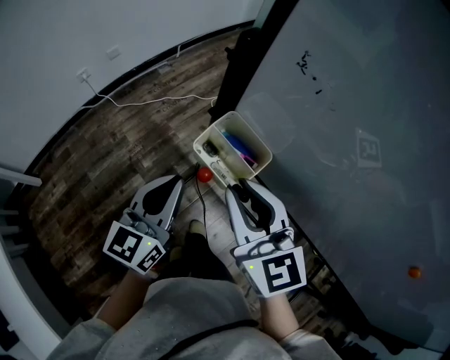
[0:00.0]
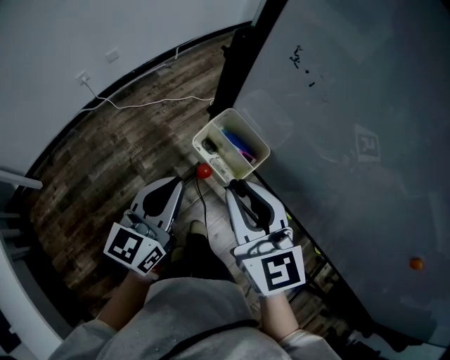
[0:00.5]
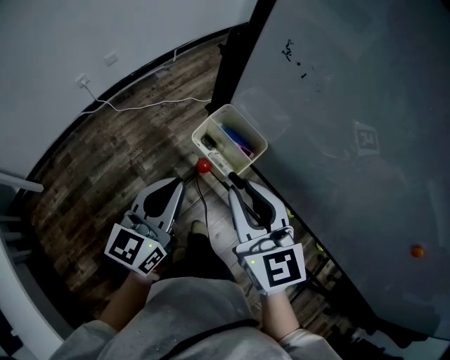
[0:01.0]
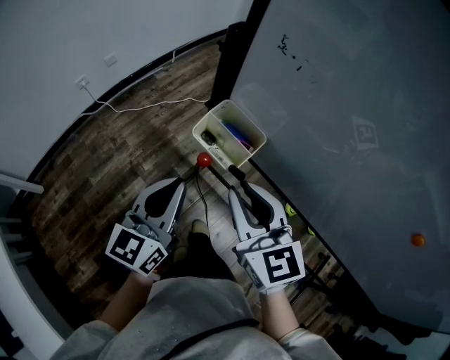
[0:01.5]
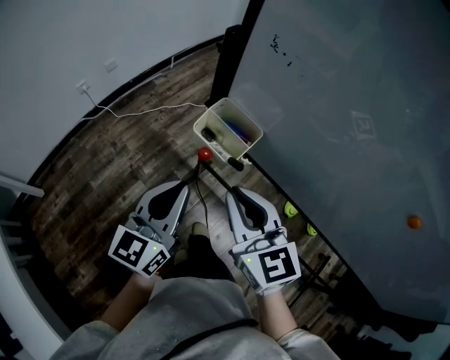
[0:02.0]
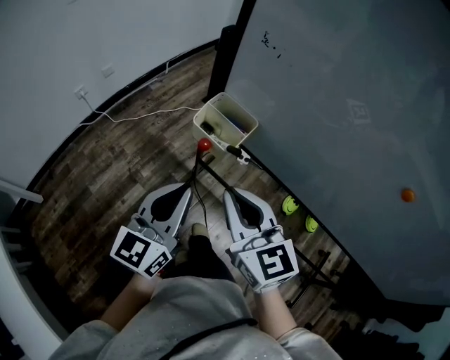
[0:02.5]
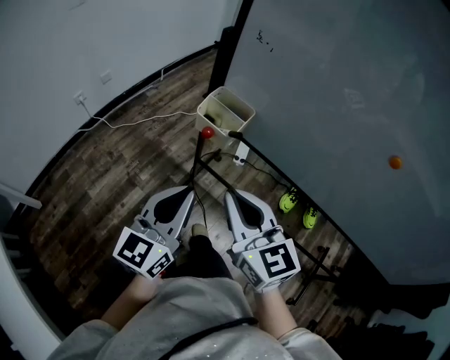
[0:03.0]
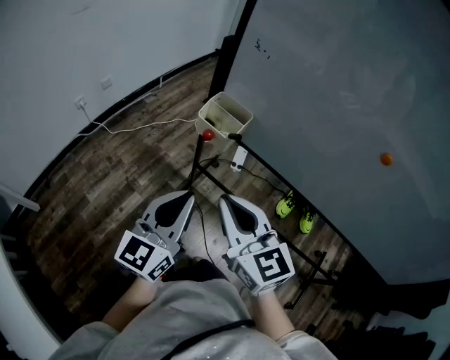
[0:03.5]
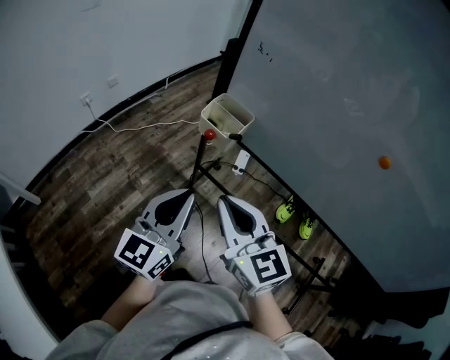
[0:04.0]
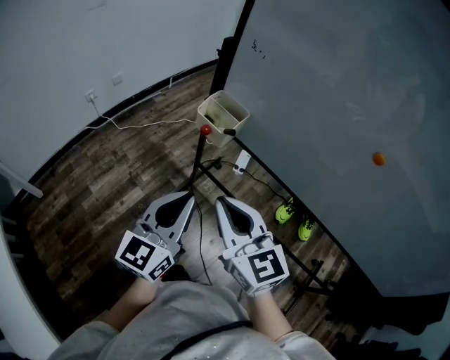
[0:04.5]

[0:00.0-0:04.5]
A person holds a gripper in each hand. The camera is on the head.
0.0 to 2.0 s: The two grippers go roughly 5 cm backward.
2.0 to 4.5 s: The grippers both shift backward by some 15 cm.

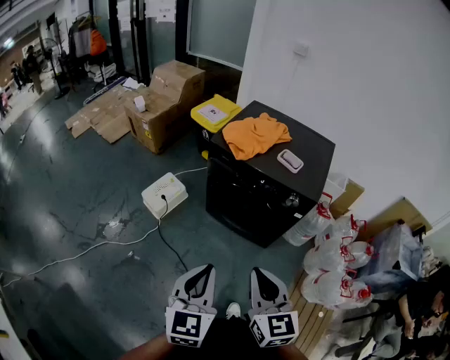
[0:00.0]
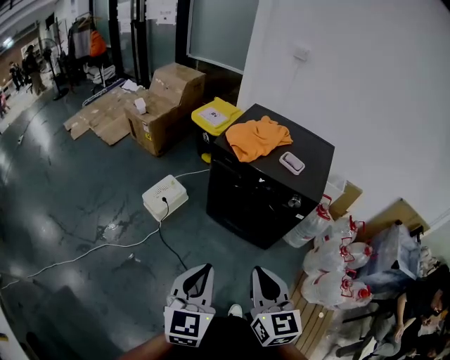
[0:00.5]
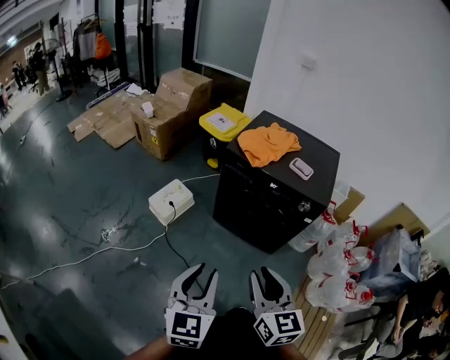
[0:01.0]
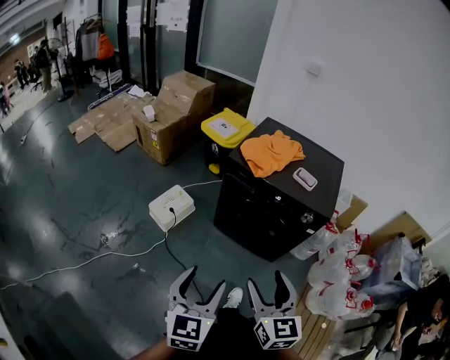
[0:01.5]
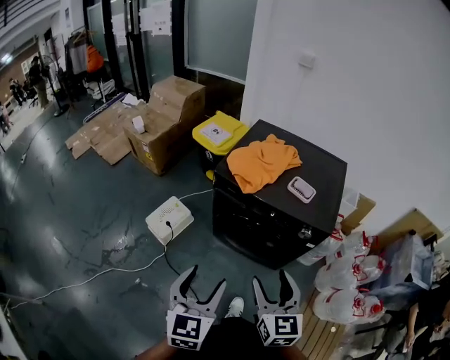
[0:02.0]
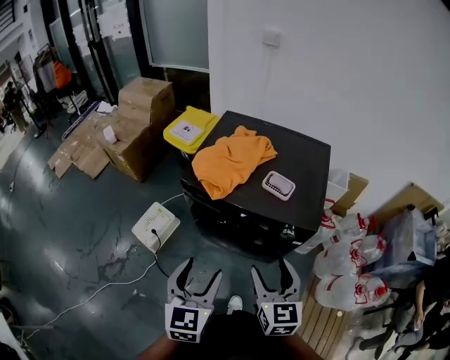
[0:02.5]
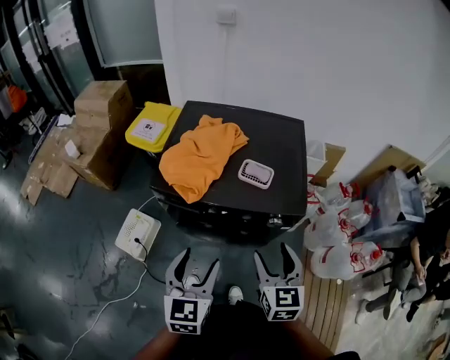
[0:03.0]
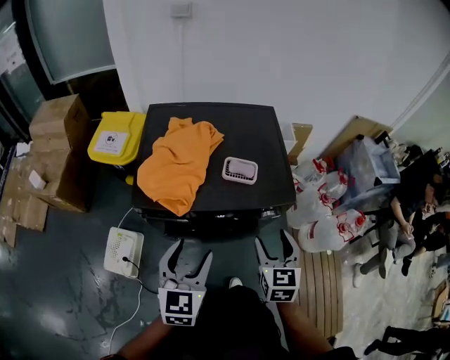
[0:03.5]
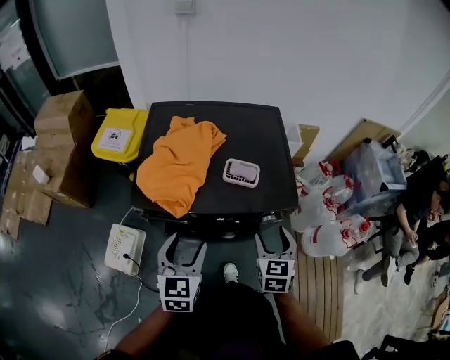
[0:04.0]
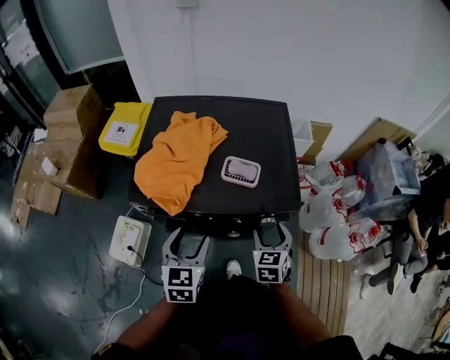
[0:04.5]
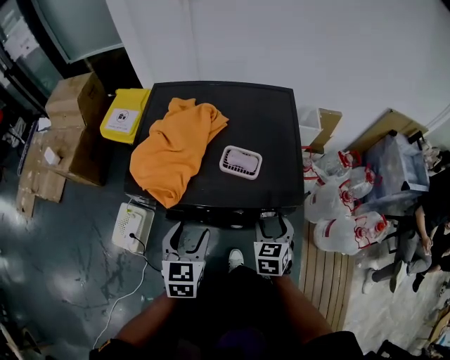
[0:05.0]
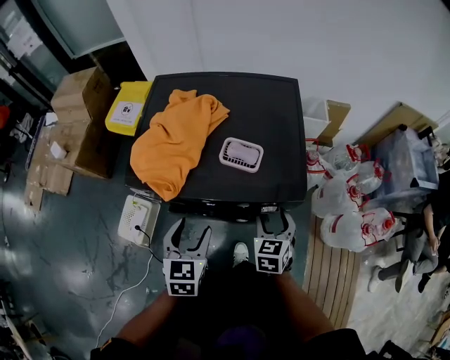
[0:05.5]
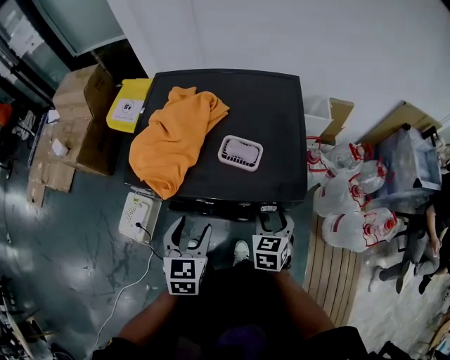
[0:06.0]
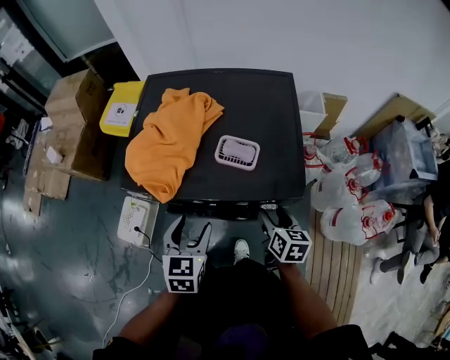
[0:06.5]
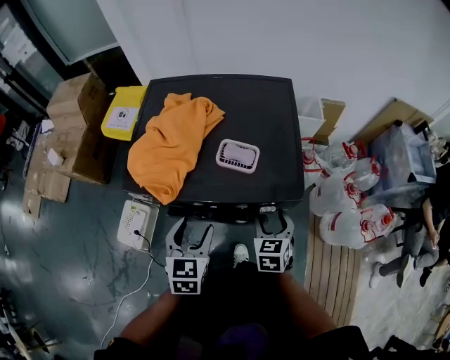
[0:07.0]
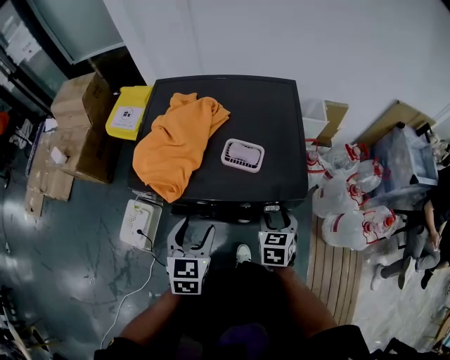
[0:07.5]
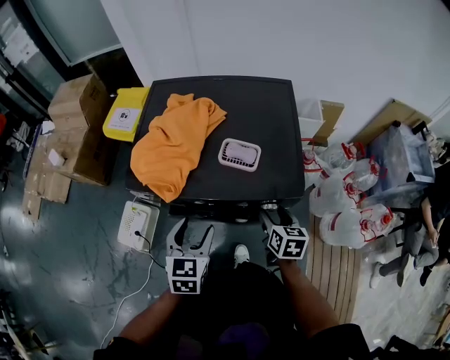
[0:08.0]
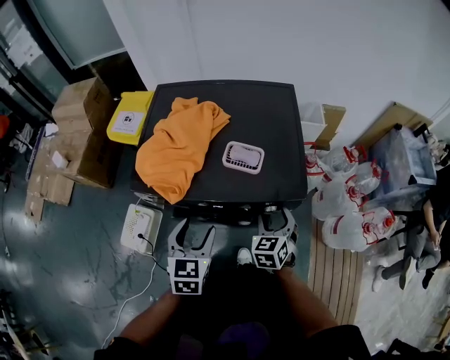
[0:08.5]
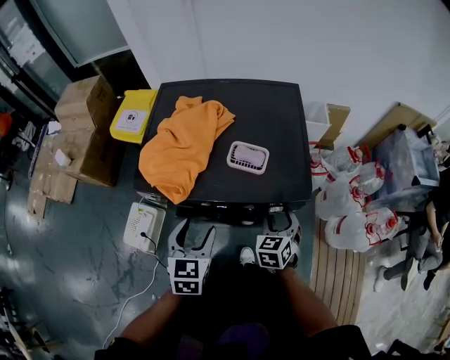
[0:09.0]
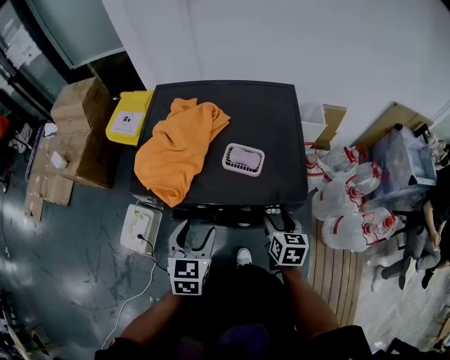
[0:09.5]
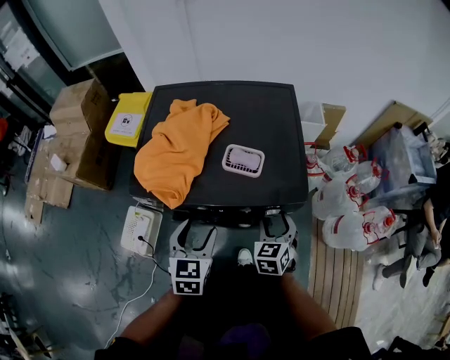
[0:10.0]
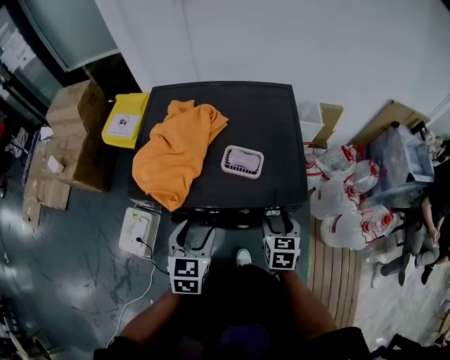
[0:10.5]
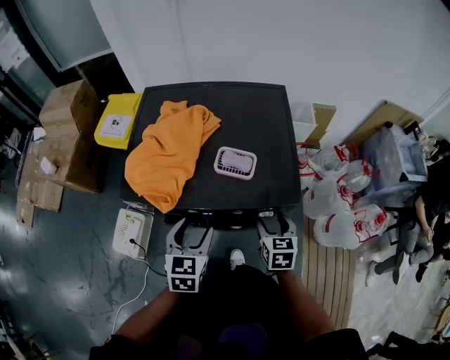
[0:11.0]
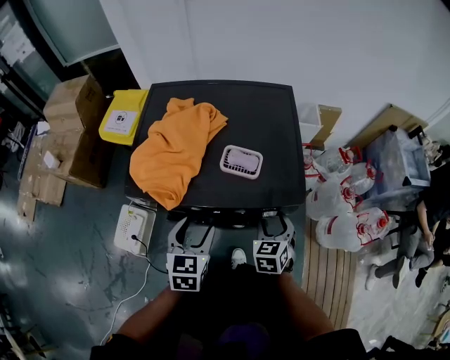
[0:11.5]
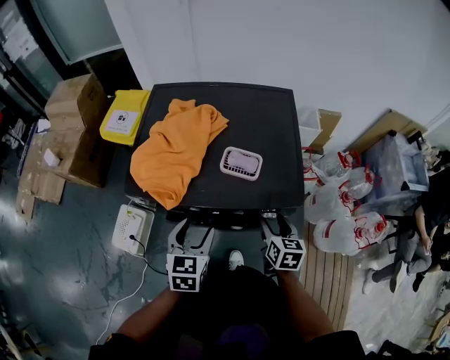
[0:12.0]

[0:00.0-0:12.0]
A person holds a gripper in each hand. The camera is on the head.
0.0 to 2.0 s: The grippers both shift forward by roughly 15 cm. The right gripper opens up. The left gripper opens.
2.0 to 4.0 s: The right gripper ends up approximately 30 cm from where it was, and rotates some 40 degrees. Meanwhile the left gripper changes place by some 30 cm, and changes its angle by some 30 degrees.
4.0 to 6.0 s: The left gripper goes about 10 cm downward and to the right; the right gripper is displaced downward and forward by approximately 10 cm.
6.0 to 8.0 s: The right gripper changes its angle by about 30 degrees.
8.0 to 10.0 s: The right gripper swivels some 40 degrees.
10.0 to 12.0 s: The right gripper rotates some 30 degrees.

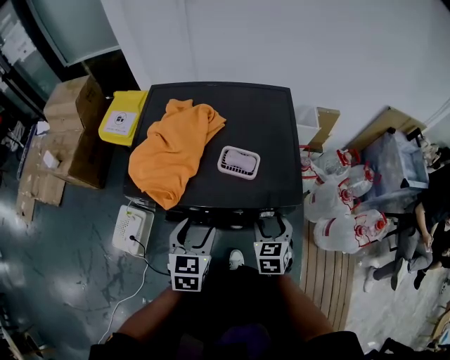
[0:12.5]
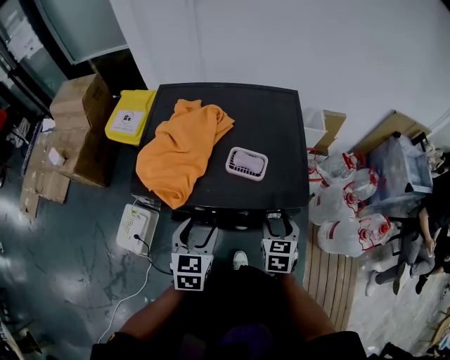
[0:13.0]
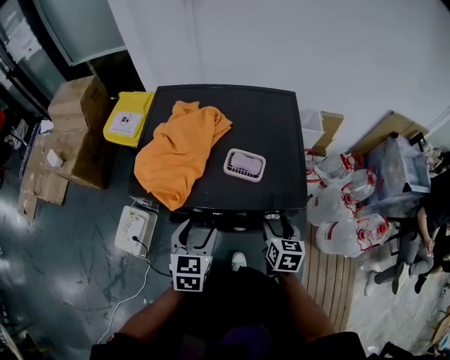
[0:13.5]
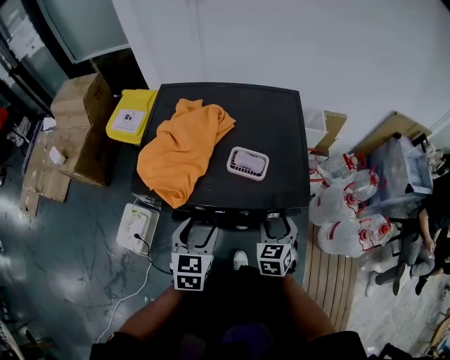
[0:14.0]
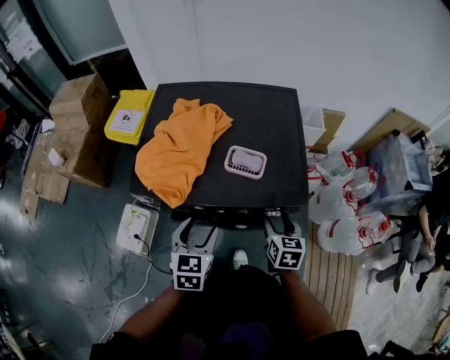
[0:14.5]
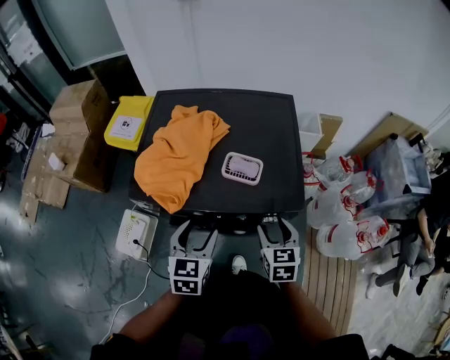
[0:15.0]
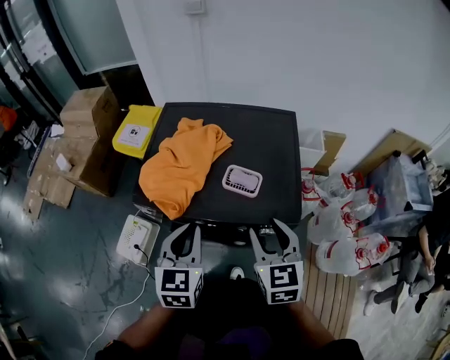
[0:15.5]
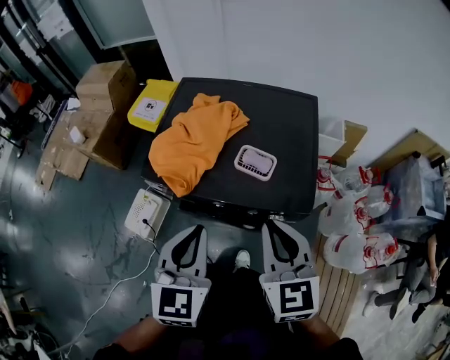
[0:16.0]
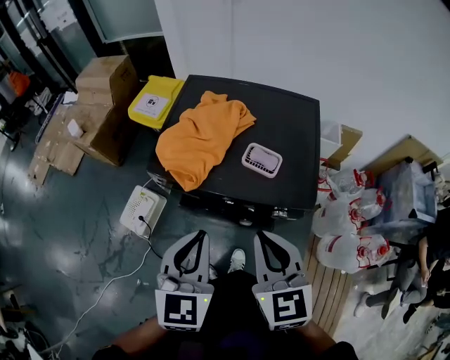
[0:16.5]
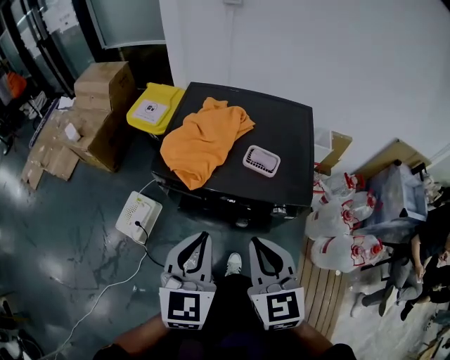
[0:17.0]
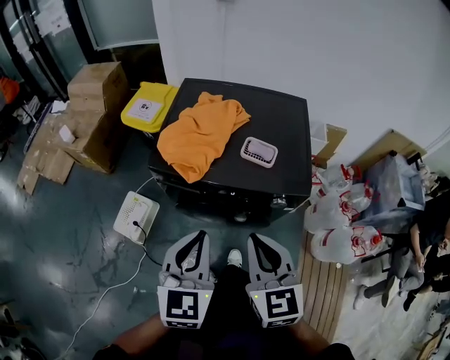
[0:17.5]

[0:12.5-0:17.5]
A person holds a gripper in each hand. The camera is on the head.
15.0 to 17.5 s: The left gripper shifts roughly 20 cm upward and backward, and closes its fingers. The right gripper heads upward, to the left and backward, covering roughly 25 cm, turns by some 20 degrees, and closes up.

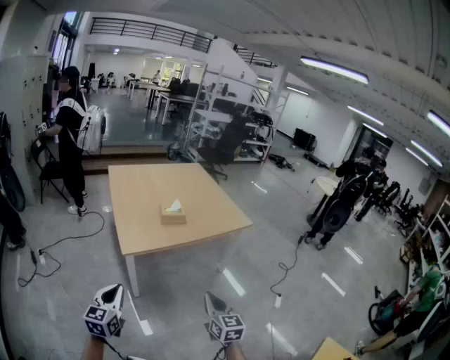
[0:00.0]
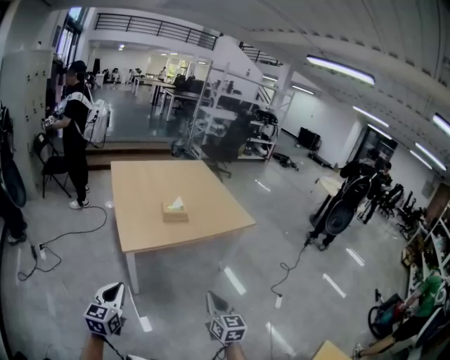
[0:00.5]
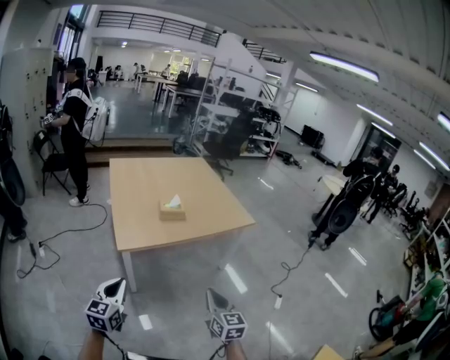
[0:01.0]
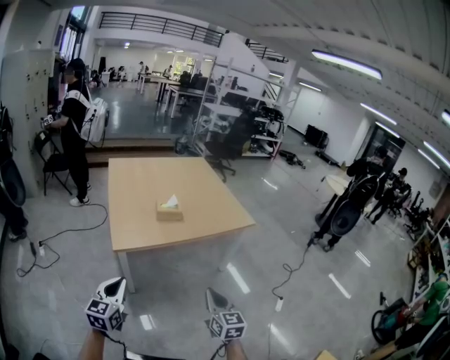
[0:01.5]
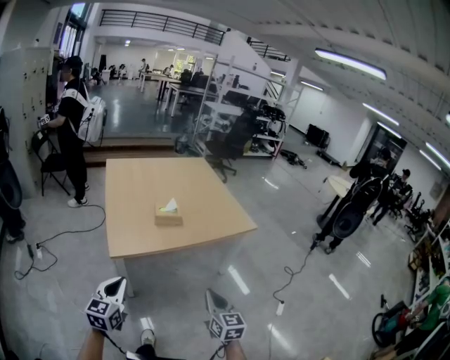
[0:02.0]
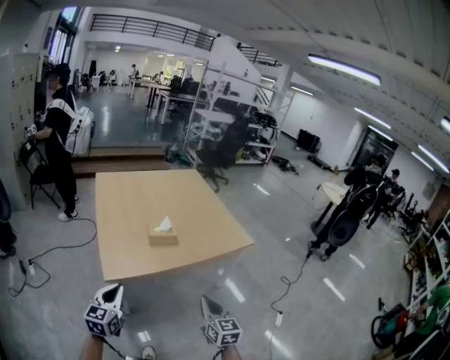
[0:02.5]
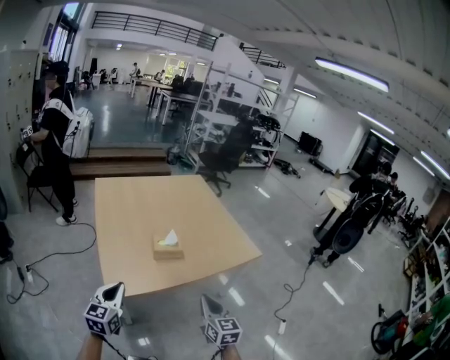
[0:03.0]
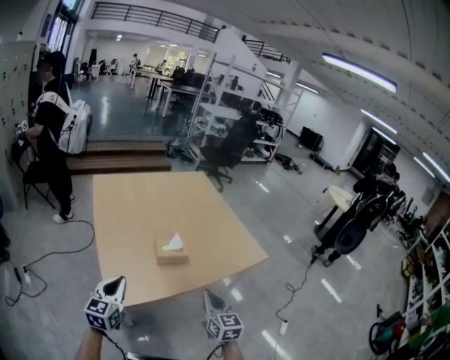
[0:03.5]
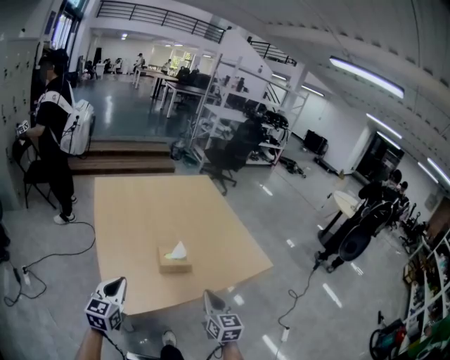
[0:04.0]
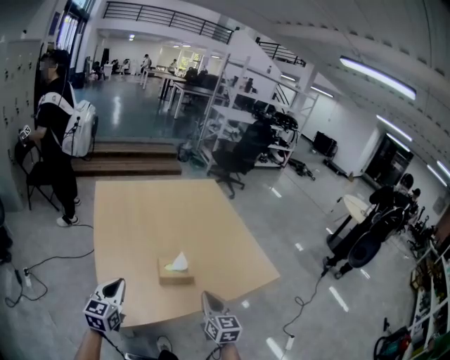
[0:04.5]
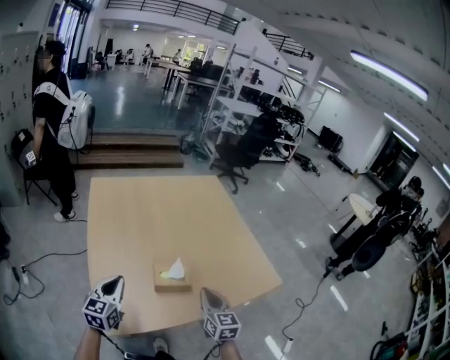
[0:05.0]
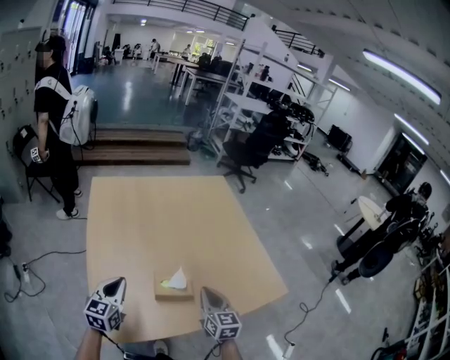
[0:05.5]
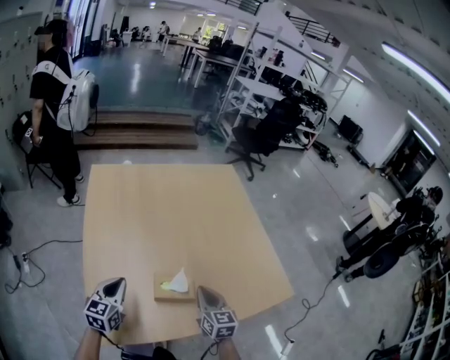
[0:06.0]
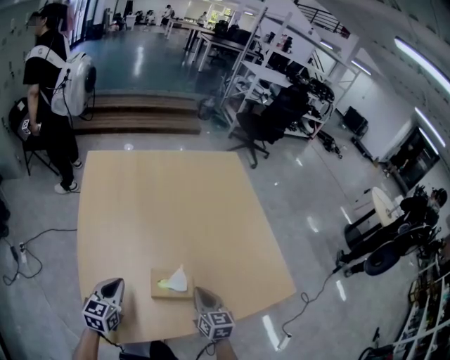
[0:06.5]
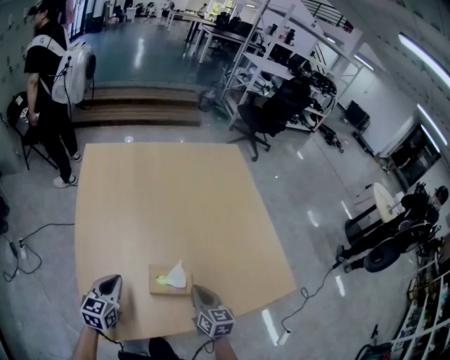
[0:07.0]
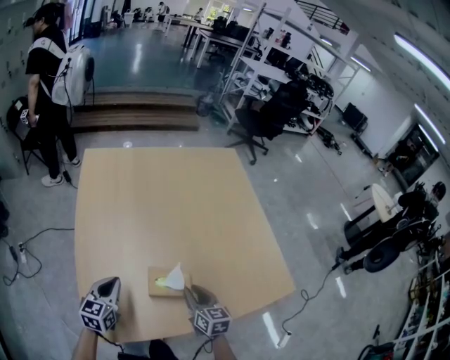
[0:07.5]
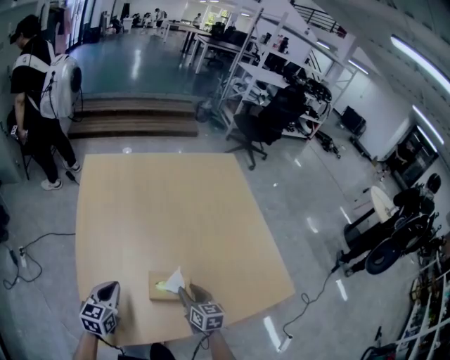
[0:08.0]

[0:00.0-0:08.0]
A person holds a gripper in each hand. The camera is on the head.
0.0 to 2.0 s: Both grippers move forward and to the right, about 10 cm.
2.0 to 4.0 s: The two grippers go roughly 30 cm forward.
4.0 to 6.0 s: The left gripper is displaced forward and downward by some 20 cm; the right gripper shifts roughly 25 cm forward.
6.0 to 8.0 s: The right gripper is displaced downward by roughly 10 cm, and opens its fingers.
